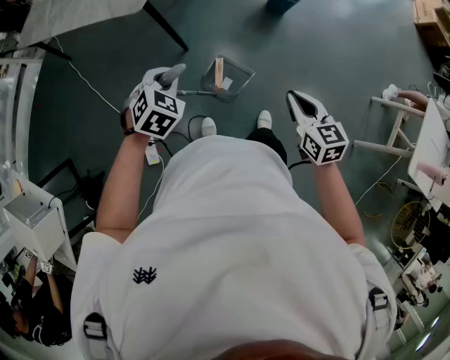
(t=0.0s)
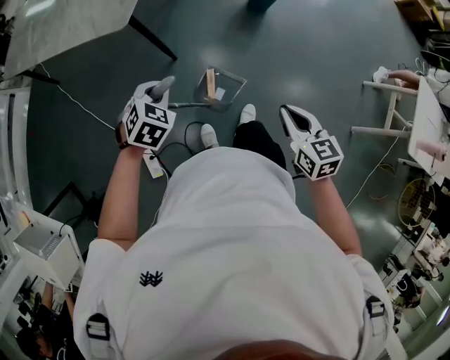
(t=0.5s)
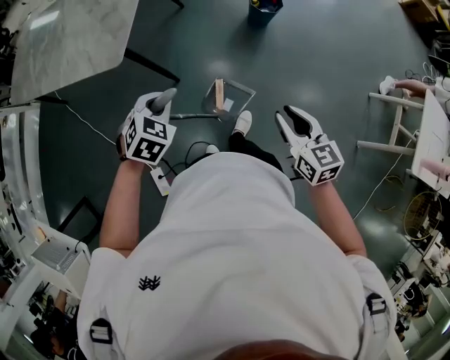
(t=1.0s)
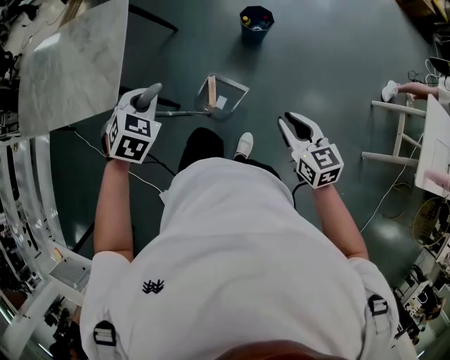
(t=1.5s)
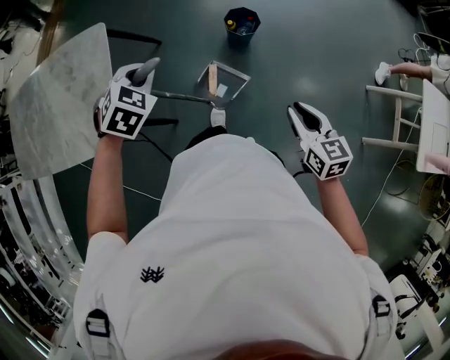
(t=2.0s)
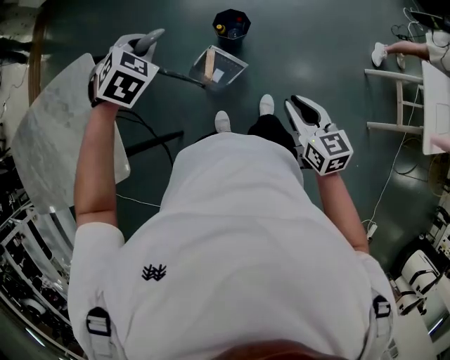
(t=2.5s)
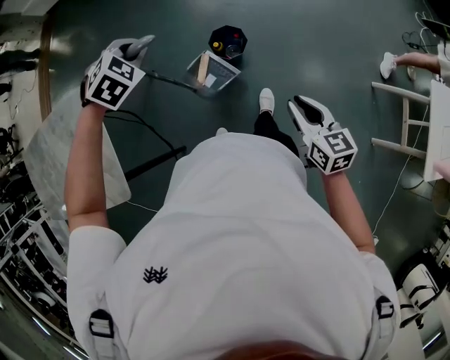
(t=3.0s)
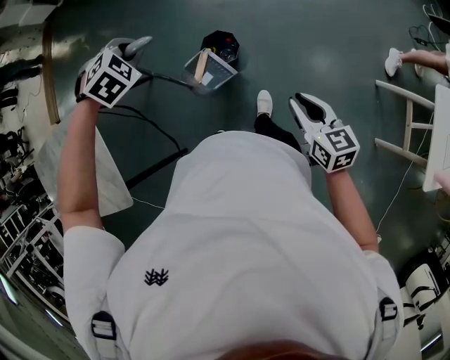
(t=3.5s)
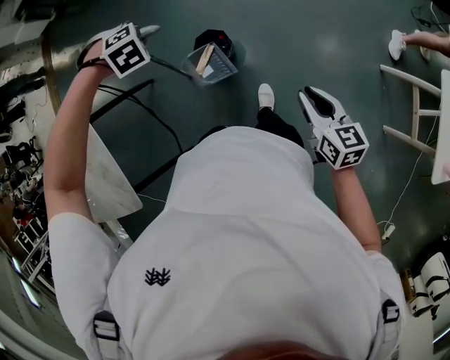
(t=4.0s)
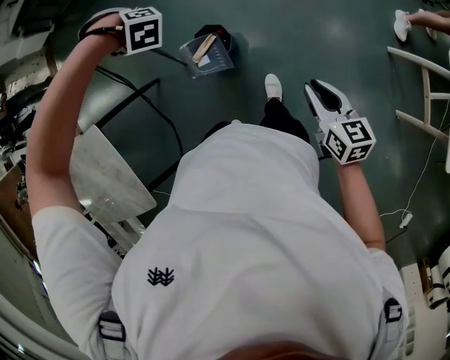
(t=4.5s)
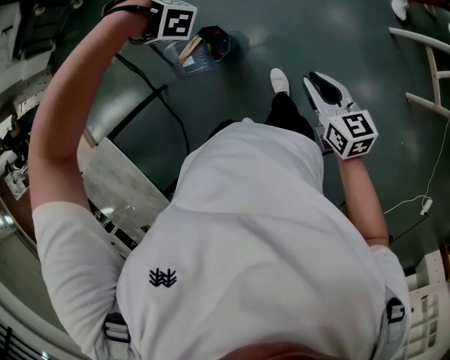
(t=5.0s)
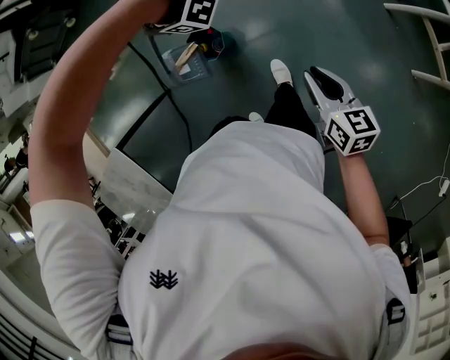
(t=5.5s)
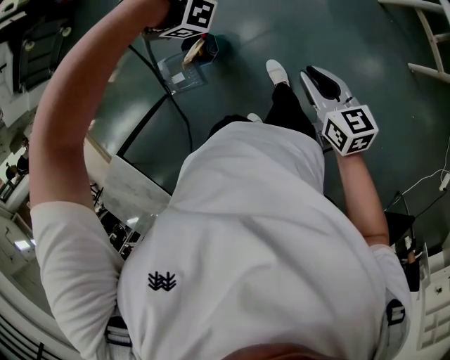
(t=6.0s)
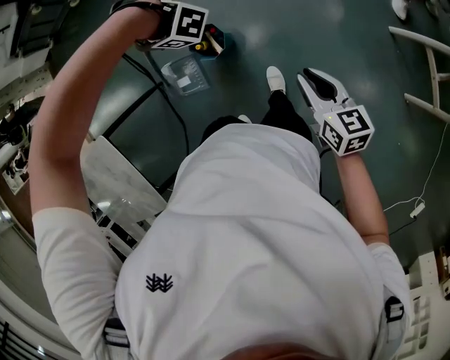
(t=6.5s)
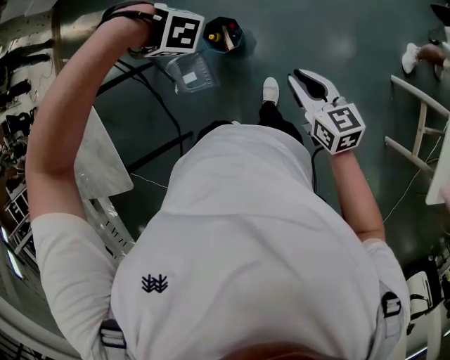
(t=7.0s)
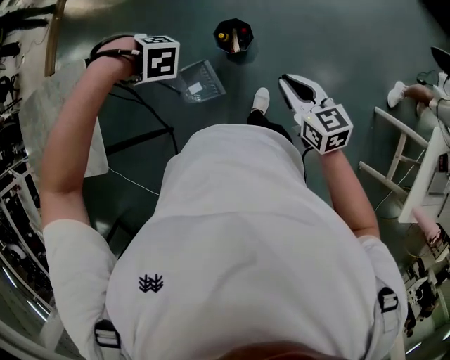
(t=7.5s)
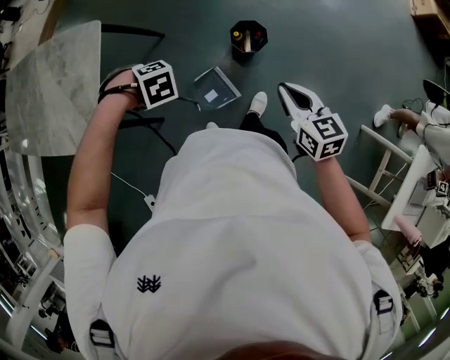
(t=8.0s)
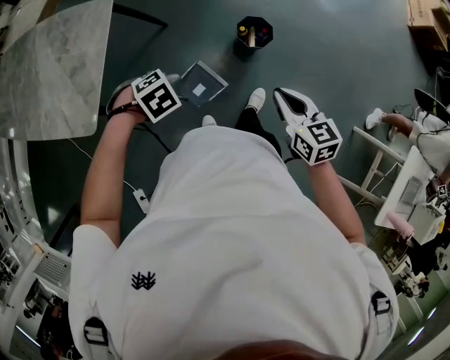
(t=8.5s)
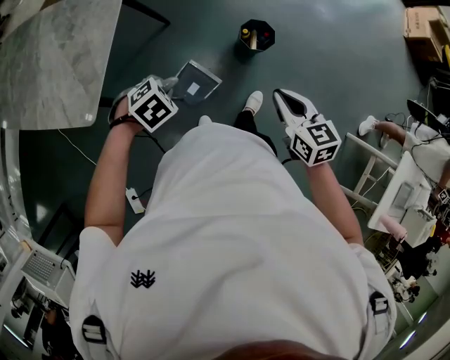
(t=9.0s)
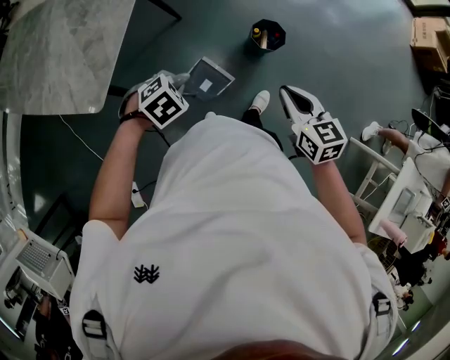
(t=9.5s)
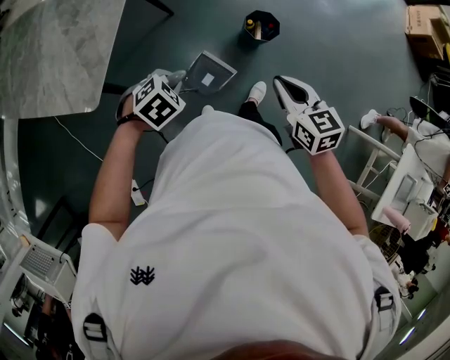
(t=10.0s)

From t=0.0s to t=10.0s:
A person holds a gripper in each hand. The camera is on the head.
From t=0.0s to t=2.0s: The right gripper changes place by about 35 cm, and rotates roughly 20 degrees.
From t=2.0s to t=4.0s: The right gripper changes place by about 40 cm.
From t=4.0s to t=6.0s: The right gripper ends up approximately 10 cm from where it was, and changes its angle by about 20 degrees.
From t=6.0s to t=8.0s: The right gripper changes place by some 35 cm, and swivels roughly 50 degrees.
From t=8.0s to t=10.0s: The right gripper ends up roughly 15 cm from where it was.

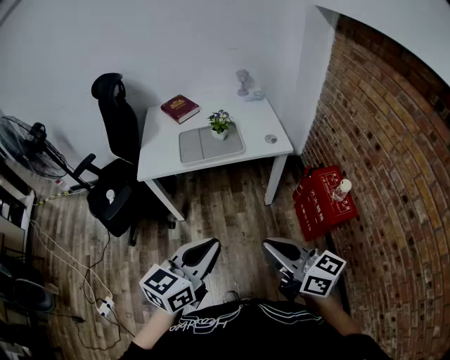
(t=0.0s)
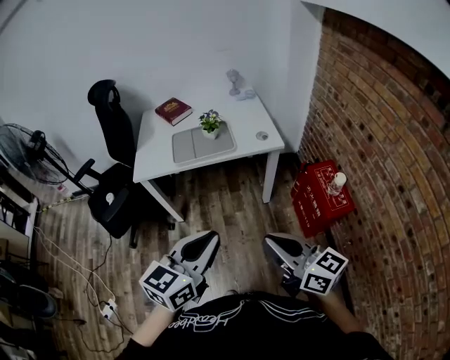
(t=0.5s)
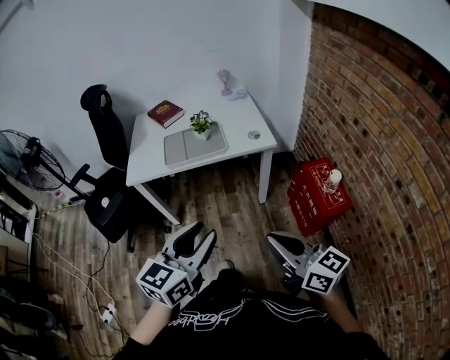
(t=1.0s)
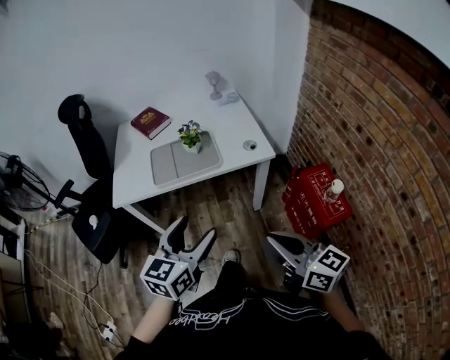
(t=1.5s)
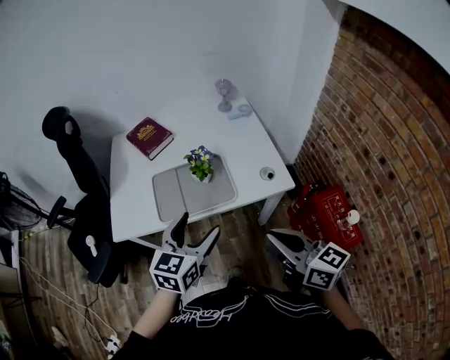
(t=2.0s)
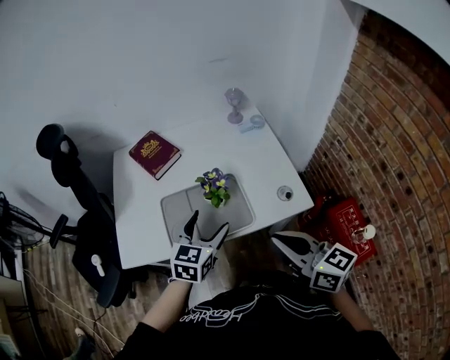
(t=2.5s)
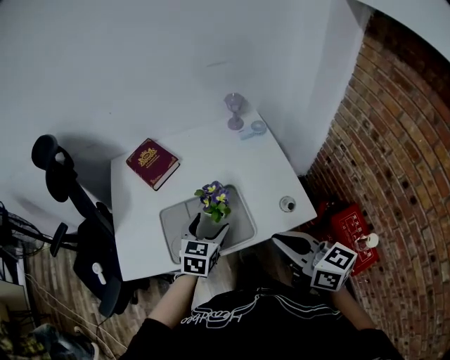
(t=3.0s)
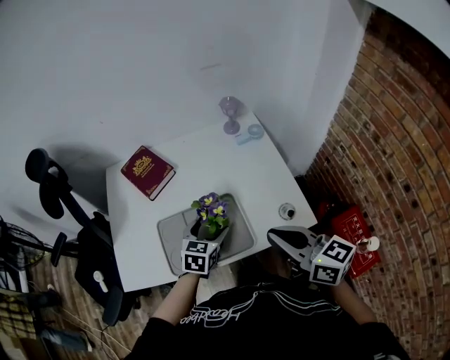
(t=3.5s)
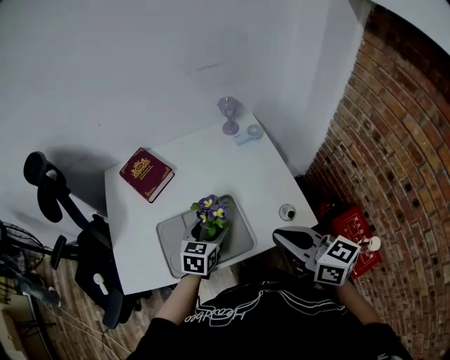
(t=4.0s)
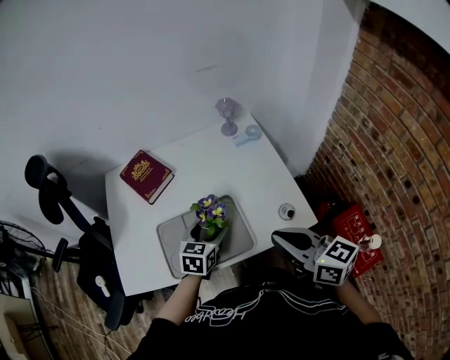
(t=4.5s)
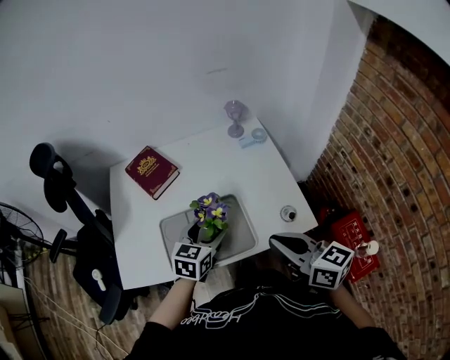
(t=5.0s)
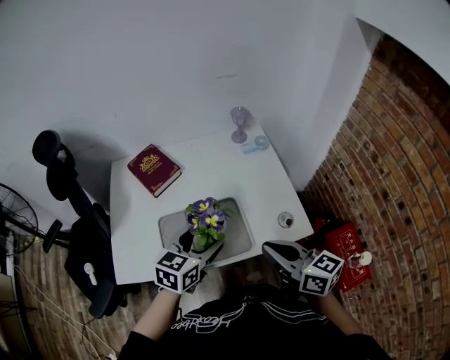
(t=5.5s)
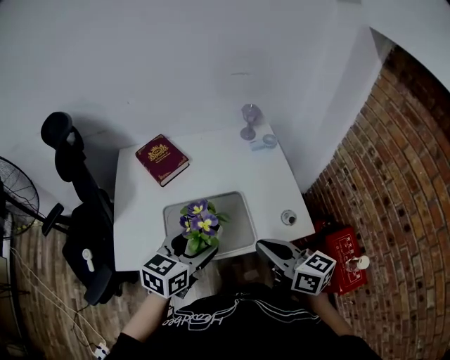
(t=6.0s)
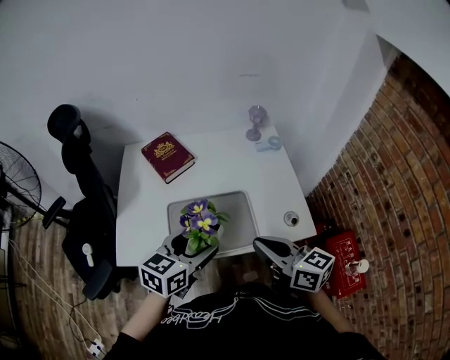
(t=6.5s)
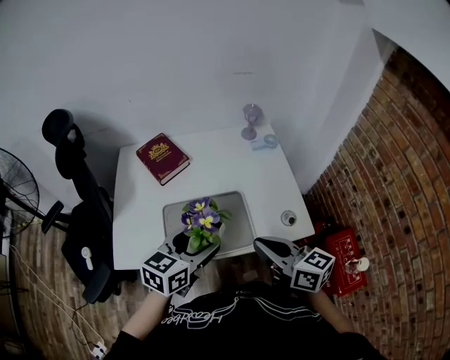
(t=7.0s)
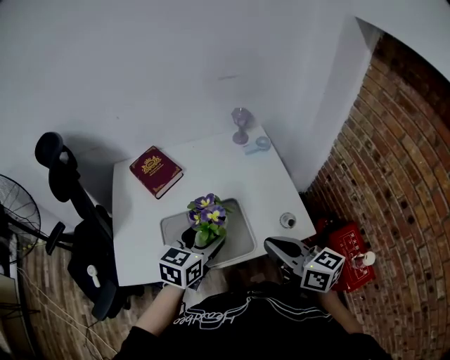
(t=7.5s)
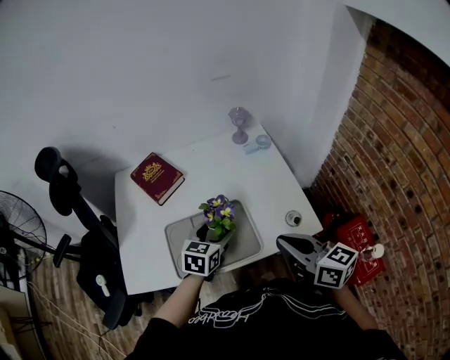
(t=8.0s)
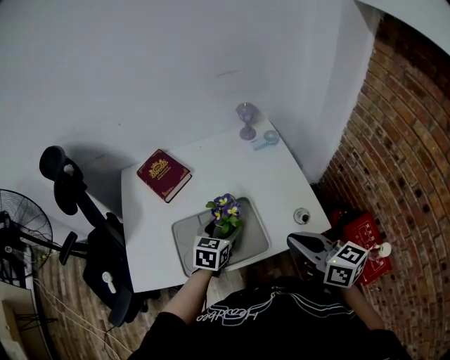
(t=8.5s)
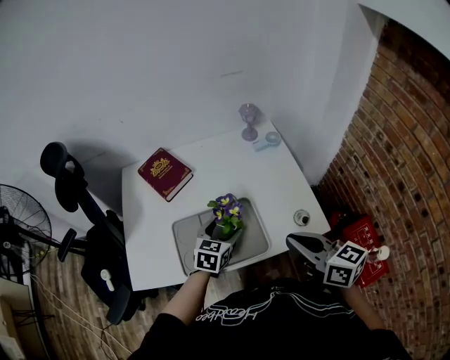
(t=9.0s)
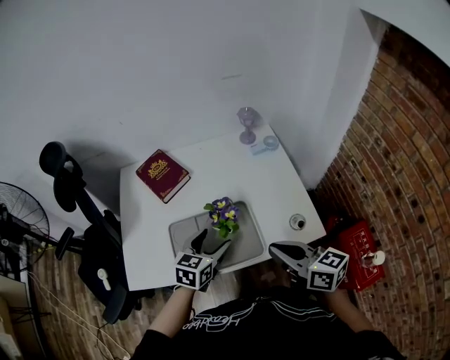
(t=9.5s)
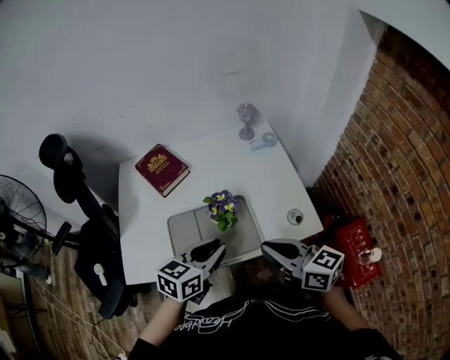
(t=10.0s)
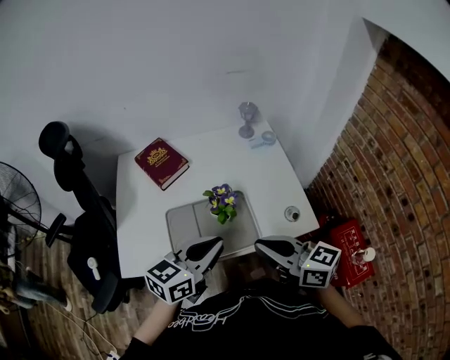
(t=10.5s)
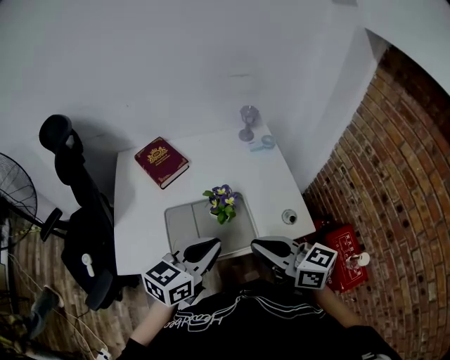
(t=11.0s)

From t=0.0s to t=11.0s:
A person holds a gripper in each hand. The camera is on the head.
From t=0.0s to t=2.0s: Both grippers move forward, about 30 cm. The left gripper opens its fingers.
From t=2.0s to t=3.5s: The left gripper shifts roughly 25 cm forward and downward; the right gripper shifts about 20 cm forward.
From t=3.5s to t=5.5s: The left gripper is displaced upward and backward by approximately 10 cm.
From t=7.5s to t=9.0s: The left gripper shifts roughly 10 cm downward.
From t=9.0s to t=11.0s: The left gripper is displaced upward and backward by roughly 20 cm, changes its angle by approximately 30 degrees, and closes up; the right gripper travels to the left by roughly 10 cm.

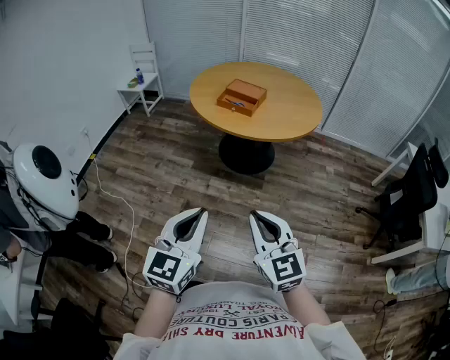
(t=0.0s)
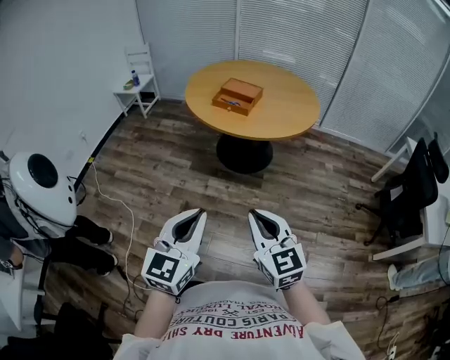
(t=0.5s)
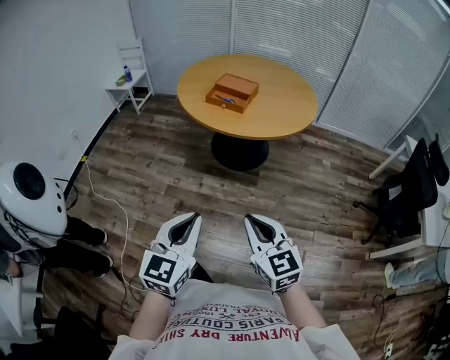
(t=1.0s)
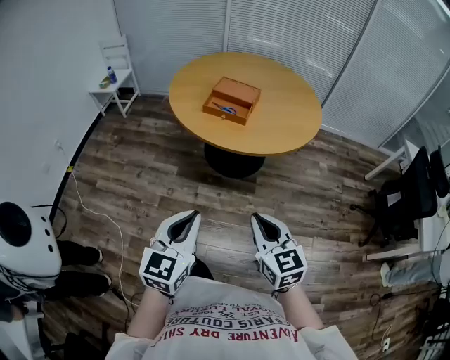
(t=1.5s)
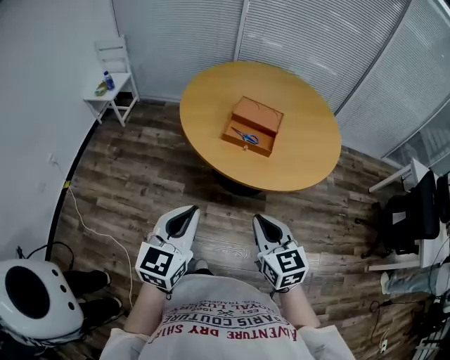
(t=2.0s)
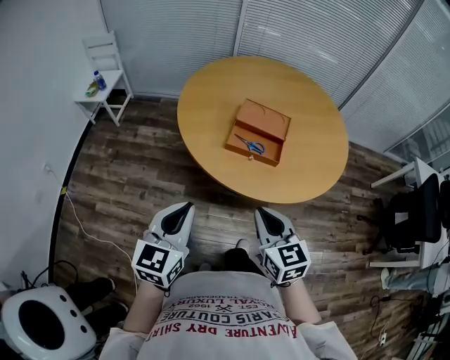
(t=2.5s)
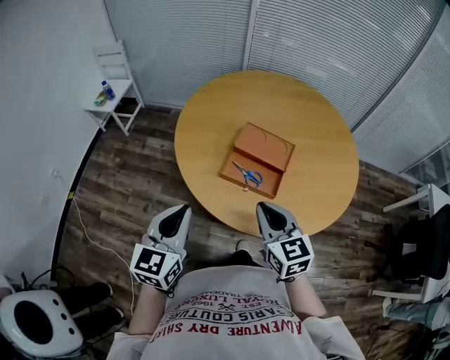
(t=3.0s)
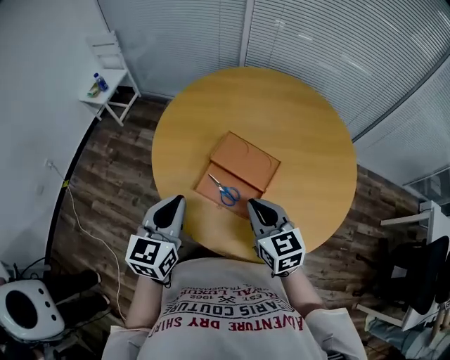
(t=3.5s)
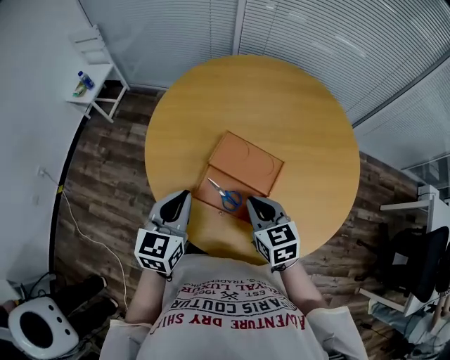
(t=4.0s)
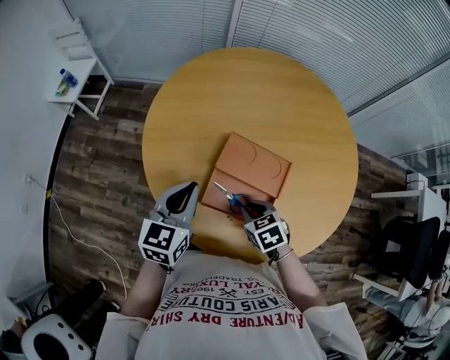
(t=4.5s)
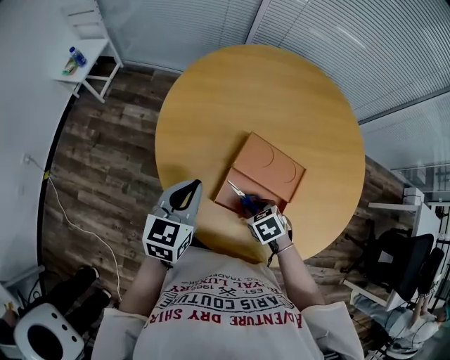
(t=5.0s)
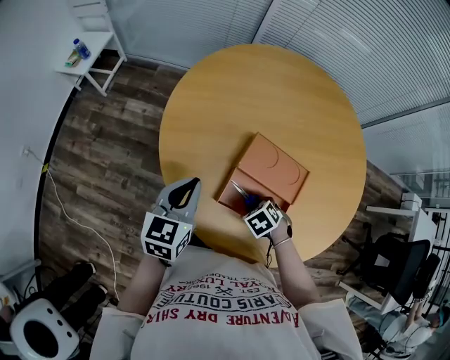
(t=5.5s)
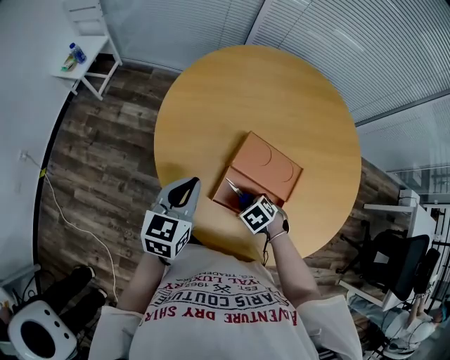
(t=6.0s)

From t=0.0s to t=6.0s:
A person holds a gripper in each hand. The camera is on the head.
From t=0.0s to t=2.0s: The pair of grippers is taken forward, approximately 40 cm. The right gripper changes its angle by approximately 20 degrees.
From t=2.0s to t=4.0s: The two grippers travel together, forward, some 40 cm.
From t=4.0s to t=6.0s: The left gripper shifts by about 10 cm. The right gripper is displaced downward by about 20 cm, tips its fingers downward by about 50 degrees, and opens up.
